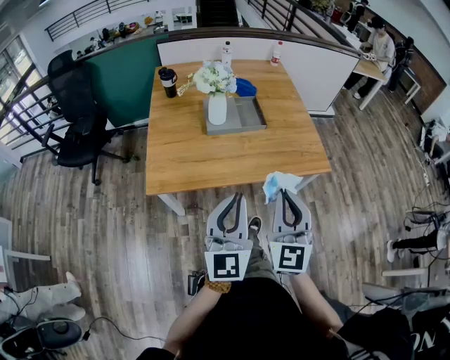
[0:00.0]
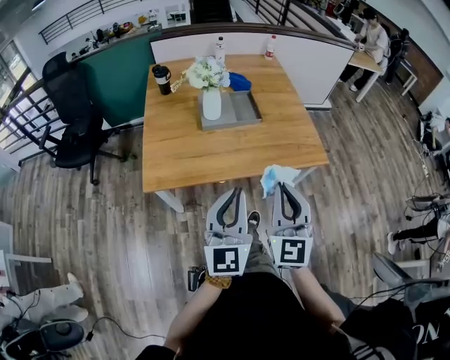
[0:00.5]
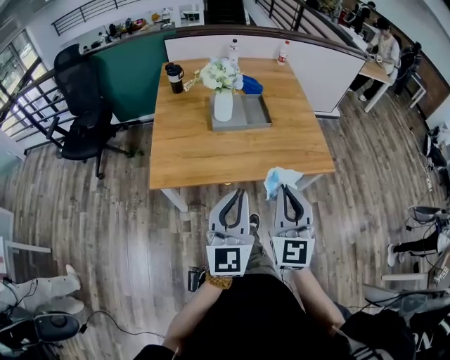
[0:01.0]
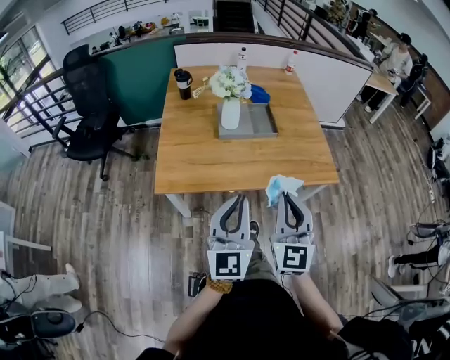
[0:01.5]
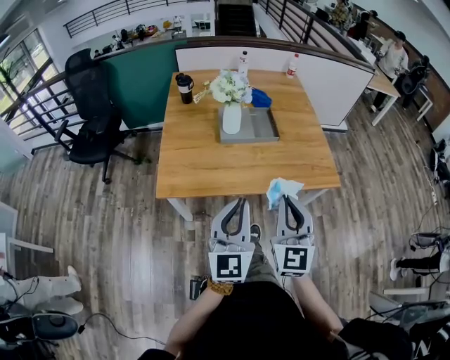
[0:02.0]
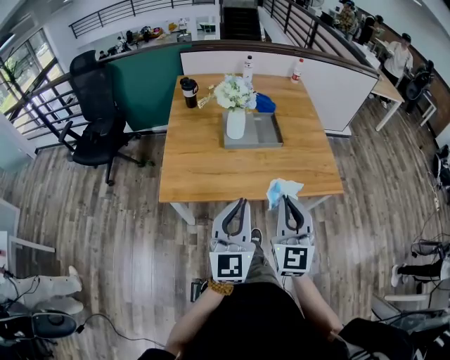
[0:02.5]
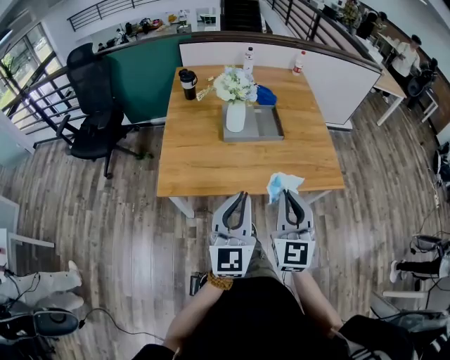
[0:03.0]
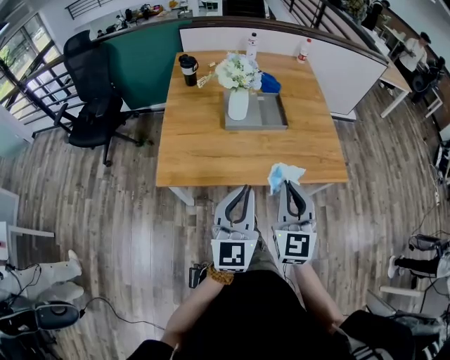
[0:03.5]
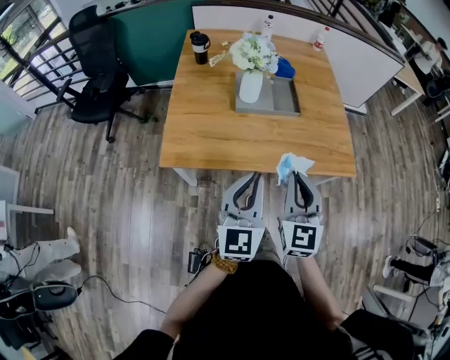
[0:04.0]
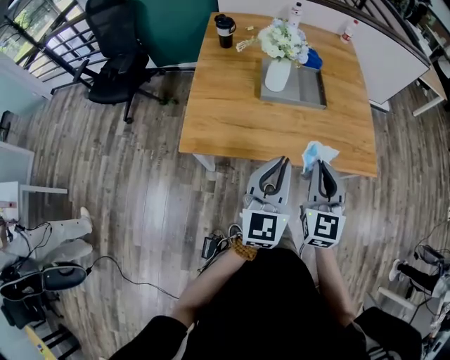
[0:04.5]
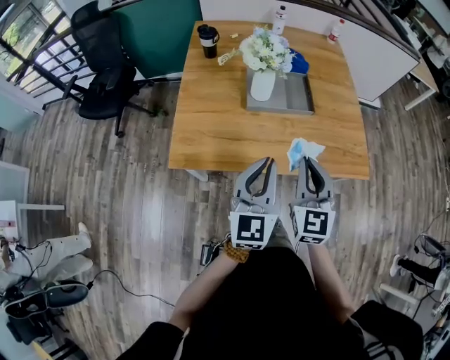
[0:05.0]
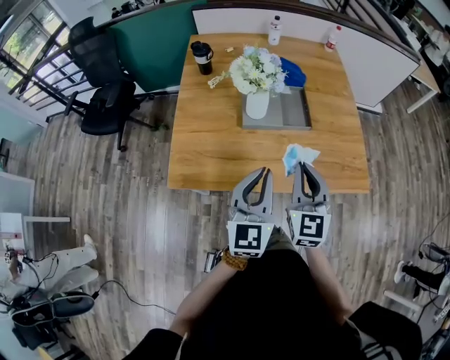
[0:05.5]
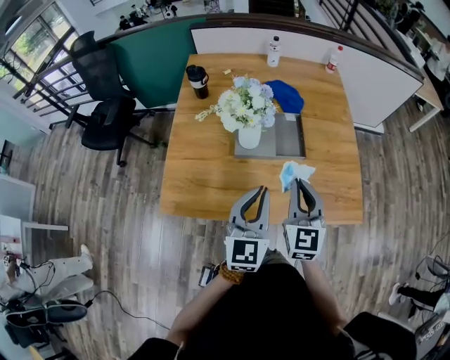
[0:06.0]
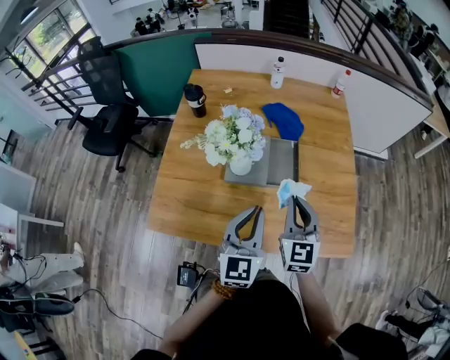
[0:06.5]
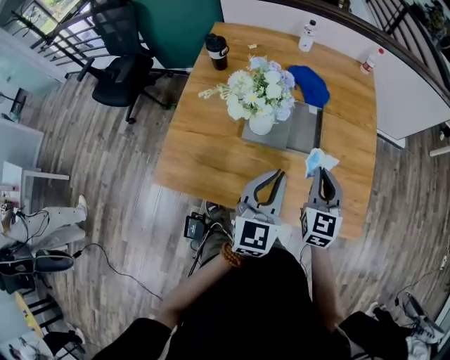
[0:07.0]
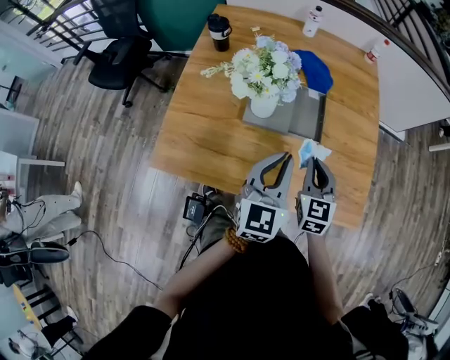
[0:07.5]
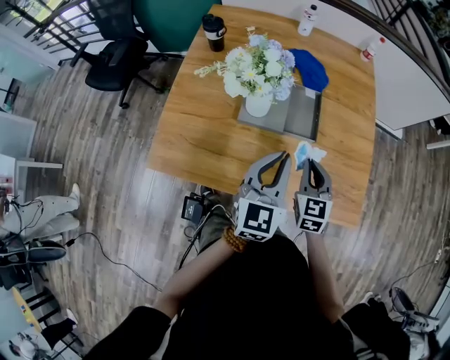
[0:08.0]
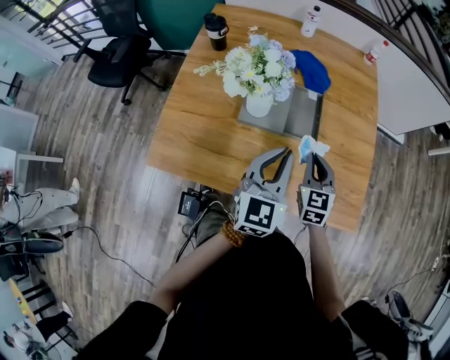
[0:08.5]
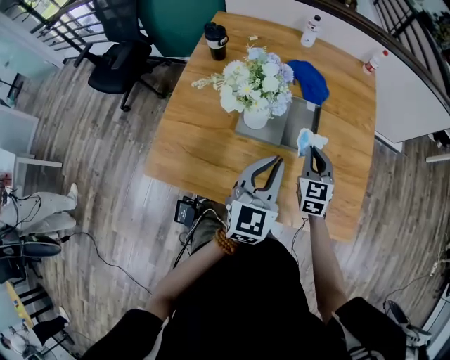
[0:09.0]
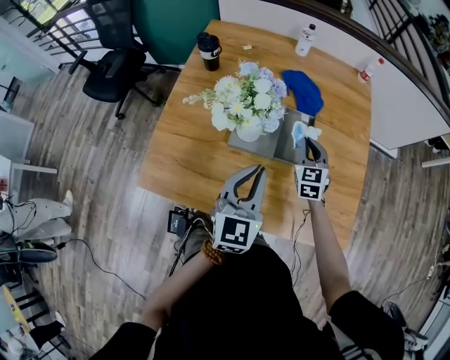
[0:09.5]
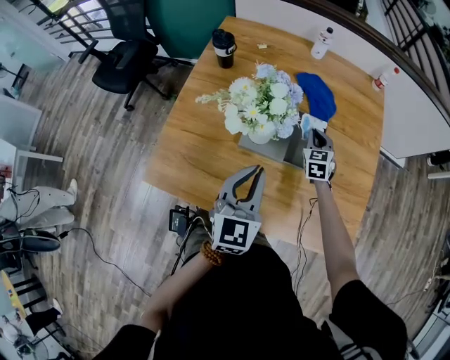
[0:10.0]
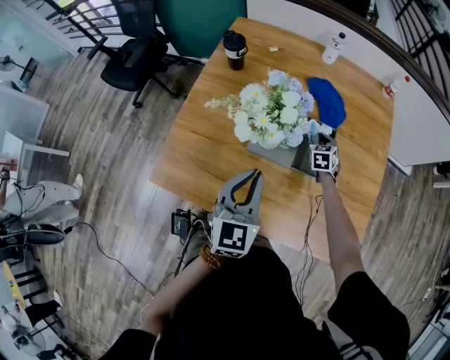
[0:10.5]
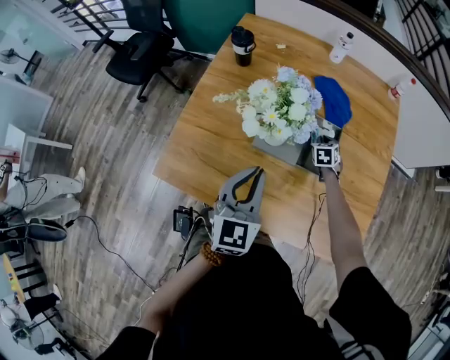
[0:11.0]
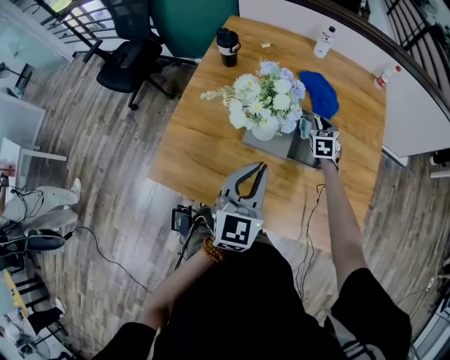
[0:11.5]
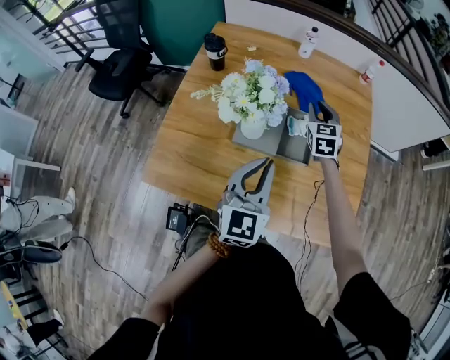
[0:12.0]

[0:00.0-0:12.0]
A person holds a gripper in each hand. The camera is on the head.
0:00.0 to 0:02.0: The grippers stay close to where they were, moving slightly.
0:02.0 to 0:04.0: Both grippers move forward, approximately 5 cm.
0:04.0 to 0:06.0: The two grippers go roughly 20 cm forward.
0:06.0 to 0:08.0: The left gripper is displaced forward and to the right by roughly 10 cm. Meanwhile the right gripper heads downward, to the right and forward, covering about 15 cm.
0:08.0 to 0:10.0: The right gripper goes about 25 cm forward, while the left gripper is displaced to the left by about 5 cm.
0:10.0 to 0:12.0: The left gripper shifts by roughly 5 cm. The right gripper shifts some 10 cm upward.

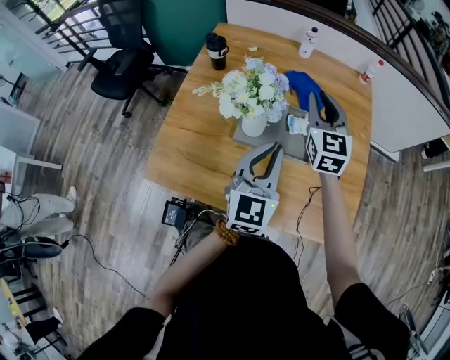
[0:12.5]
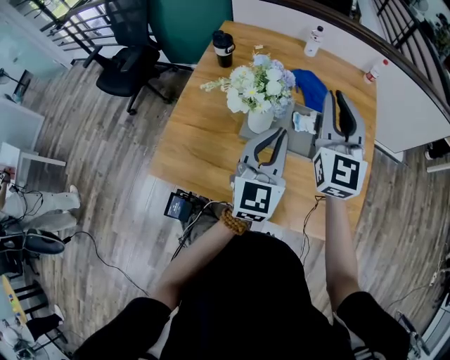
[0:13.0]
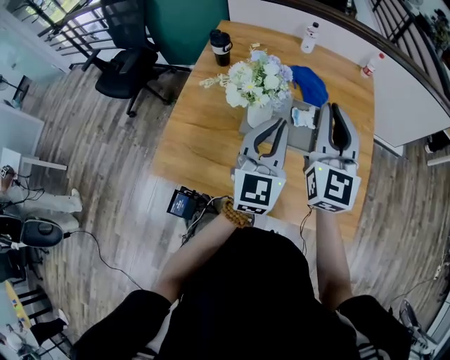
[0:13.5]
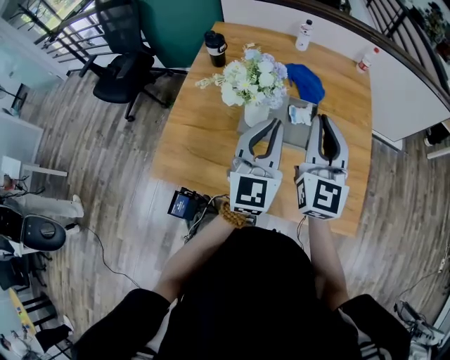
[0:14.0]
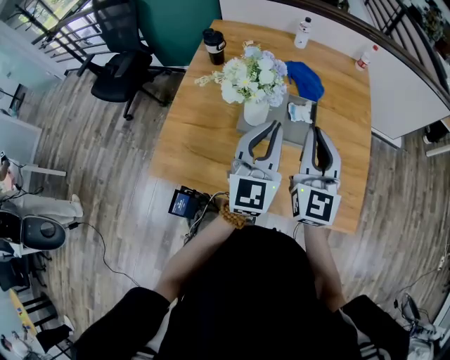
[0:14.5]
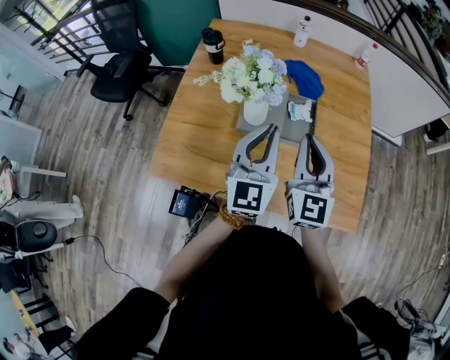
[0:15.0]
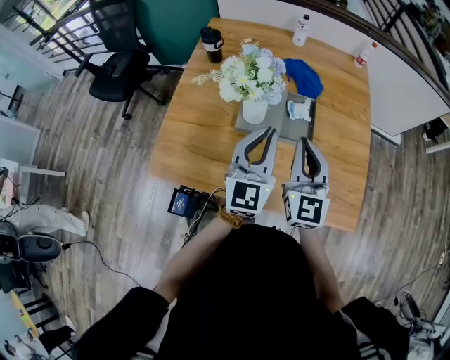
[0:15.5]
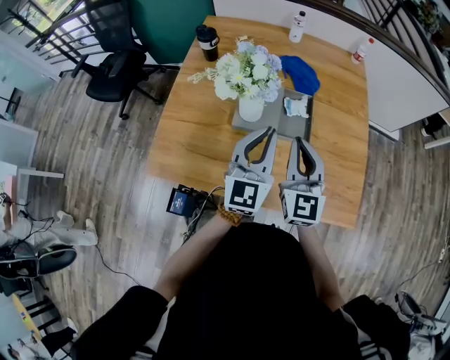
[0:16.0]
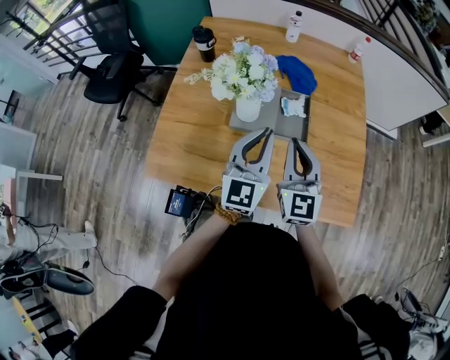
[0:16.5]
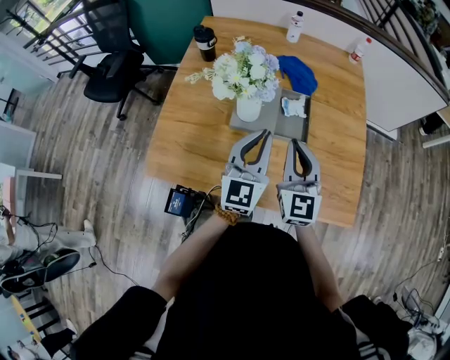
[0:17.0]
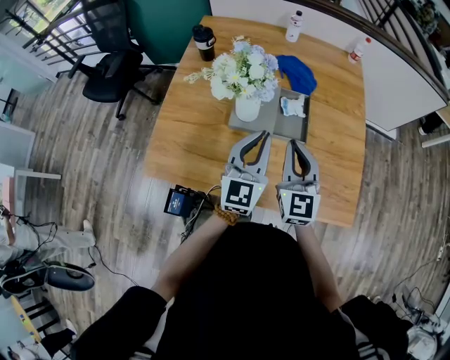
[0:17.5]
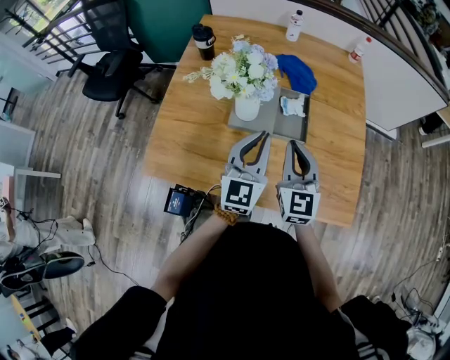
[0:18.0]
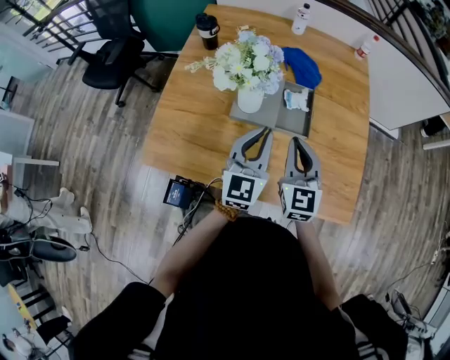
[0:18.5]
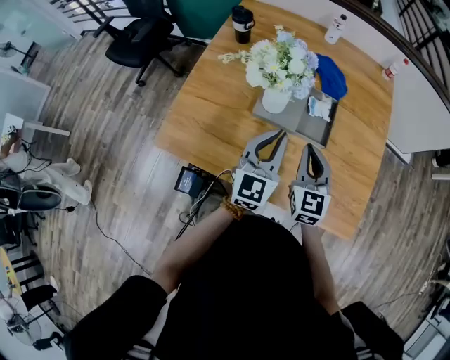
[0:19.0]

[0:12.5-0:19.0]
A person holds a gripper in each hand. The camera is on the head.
0:12.5 to 0:14.5: The right gripper shifts roughly 15 cm backward.
0:14.5 to 0:17.0: The grippers both shift downward by roughly 5 cm.
0:17.0 to 0:19.0: The right gripper travels downward by approximately 5 cm.

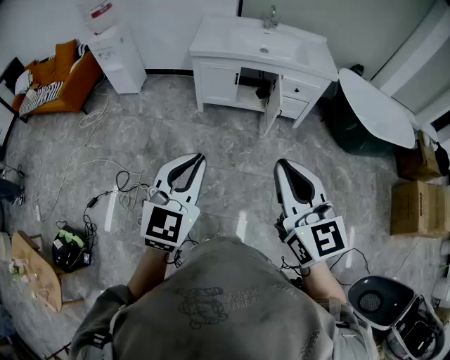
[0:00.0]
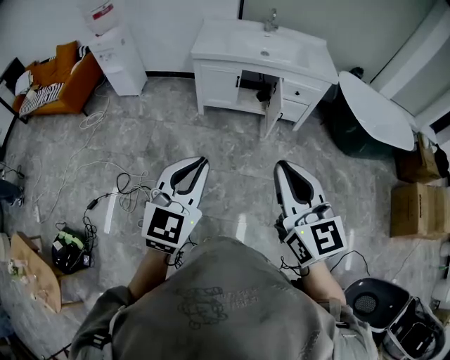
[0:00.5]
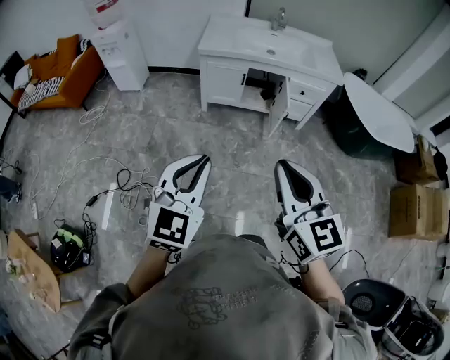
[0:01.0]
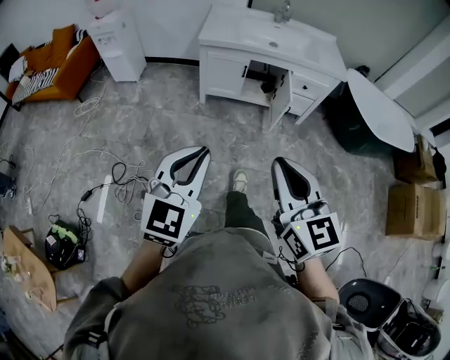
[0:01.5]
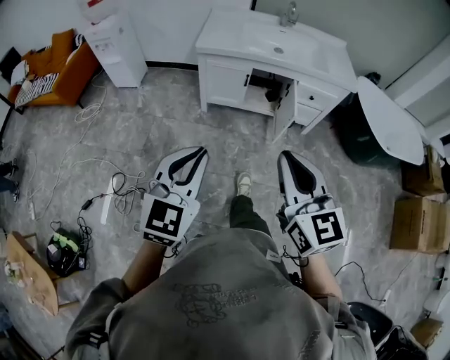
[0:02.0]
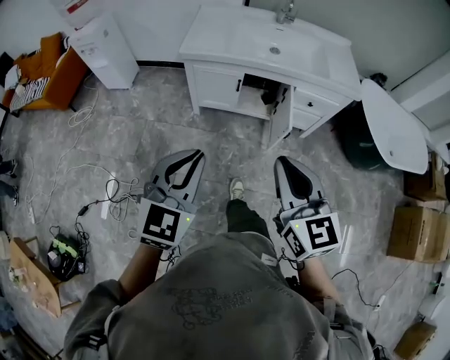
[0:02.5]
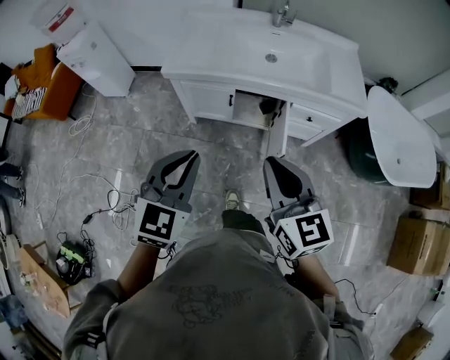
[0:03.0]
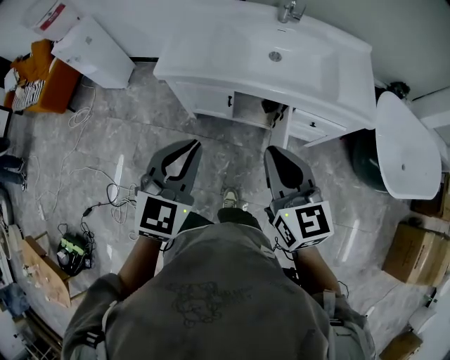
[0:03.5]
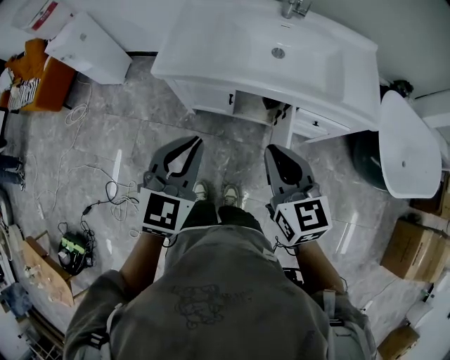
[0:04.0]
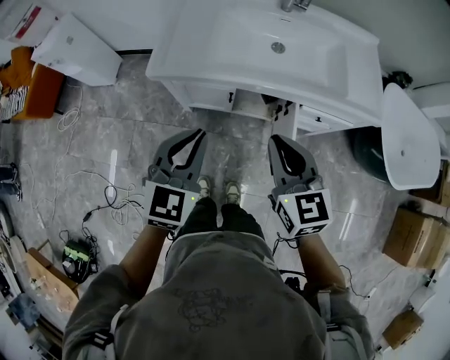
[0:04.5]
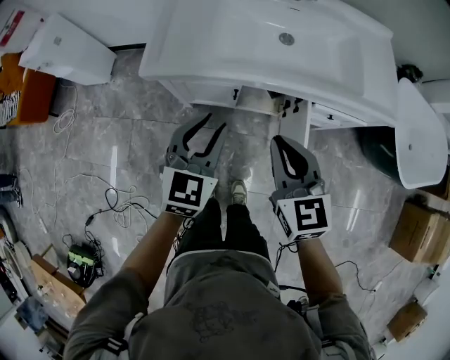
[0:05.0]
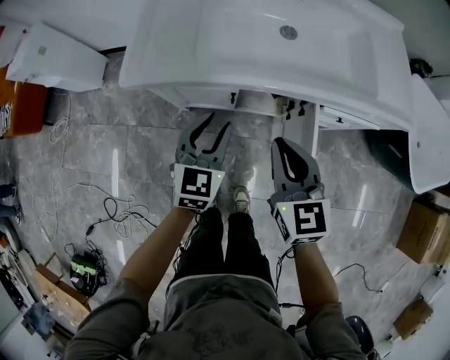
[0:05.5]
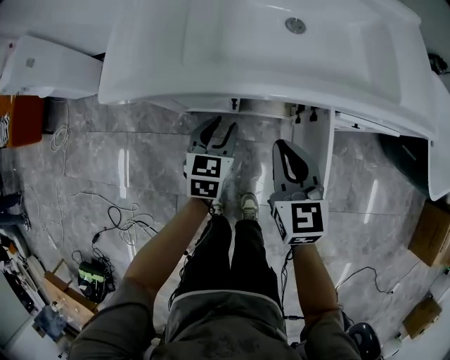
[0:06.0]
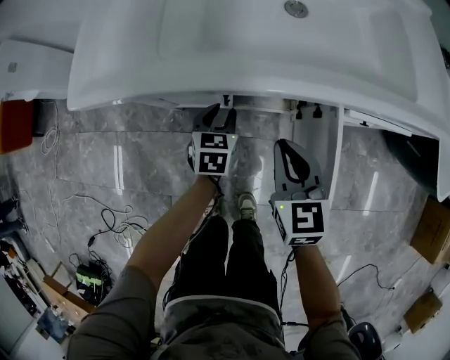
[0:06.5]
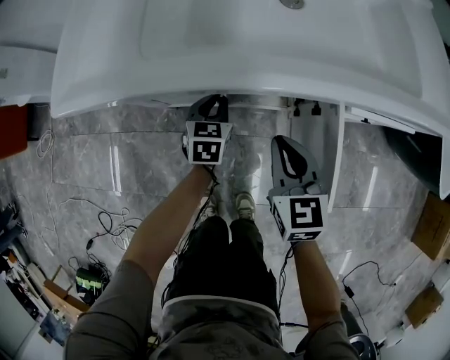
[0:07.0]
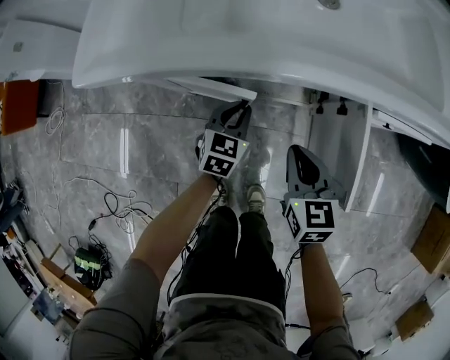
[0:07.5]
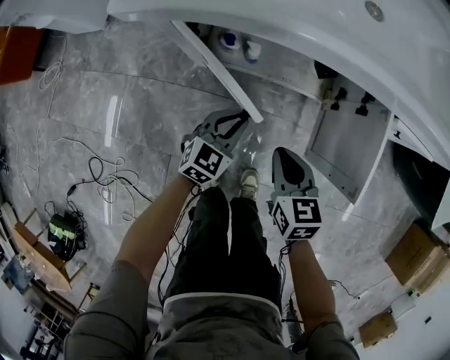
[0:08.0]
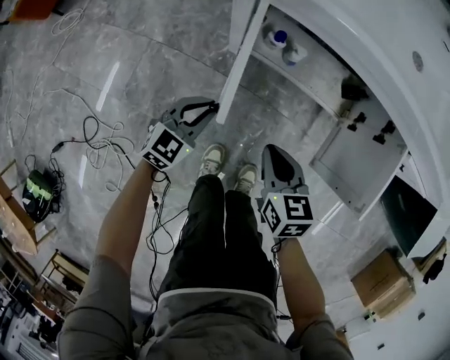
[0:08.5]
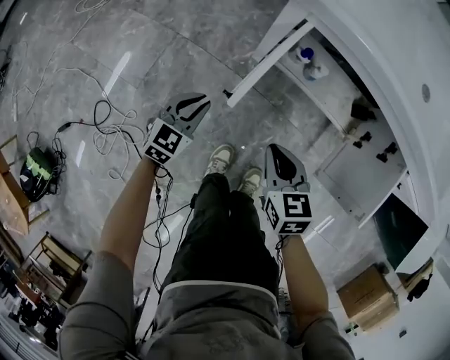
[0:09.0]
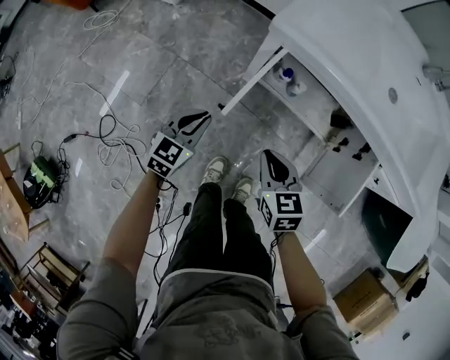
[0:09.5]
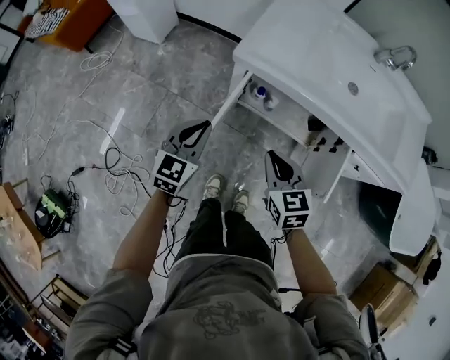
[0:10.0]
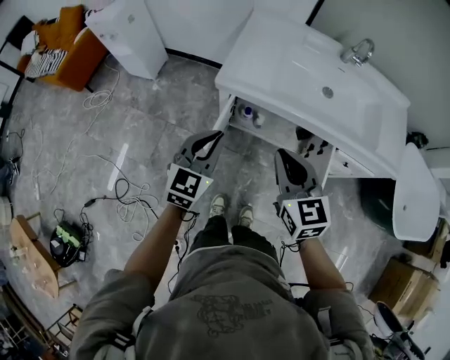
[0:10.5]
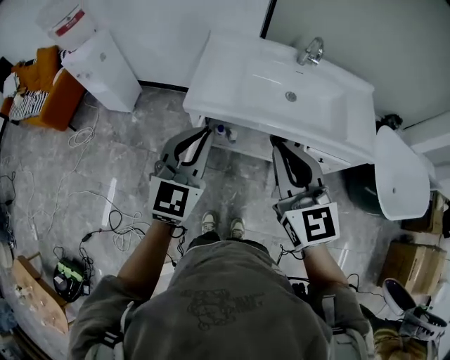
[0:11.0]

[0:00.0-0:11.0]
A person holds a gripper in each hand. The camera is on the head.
0:00.0 to 0:02.0: The right gripper is displaced forward and downward by approximately 20 cm; the left gripper moves forward, roughly 15 cm.
0:02.0 to 0:03.5: Both grippers are carried forward, about 40 cm.
0:03.5 to 0:05.5: Both grippers travel together downward and forward, some 30 cm. The left gripper opens its fingers.
0:05.5 to 0:07.5: The grippers both shift downward by about 25 cm. The left gripper closes.
0:07.5 to 0:09.0: Both grippers move to the left and backward, roughly 35 cm. The right gripper swivels about 30 degrees.
0:09.0 to 0:11.0: The two grippers go roughly 60 cm upward. The right gripper angles its fingers upward, by some 40 degrees. Meanwhile the left gripper rotates roughly 30 degrees.
